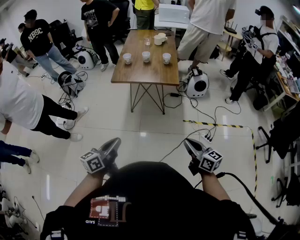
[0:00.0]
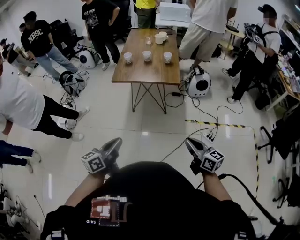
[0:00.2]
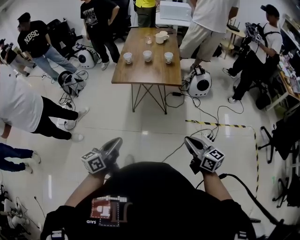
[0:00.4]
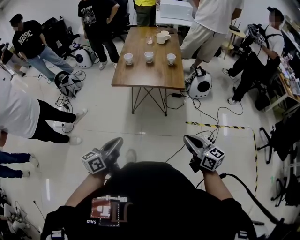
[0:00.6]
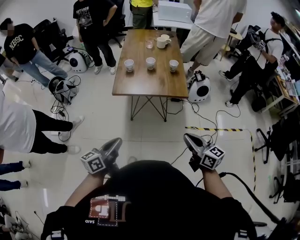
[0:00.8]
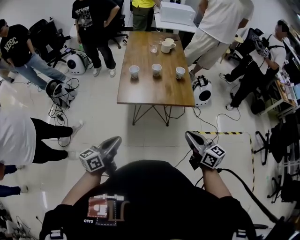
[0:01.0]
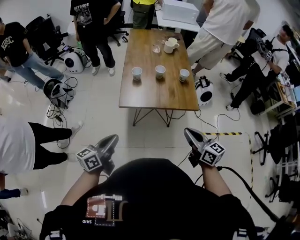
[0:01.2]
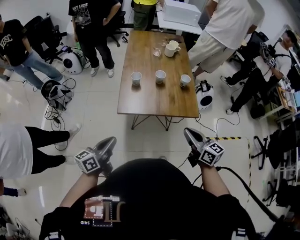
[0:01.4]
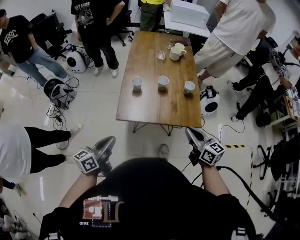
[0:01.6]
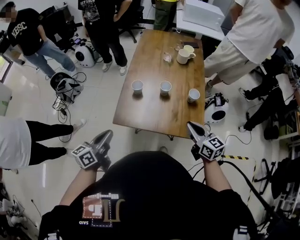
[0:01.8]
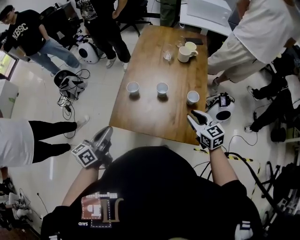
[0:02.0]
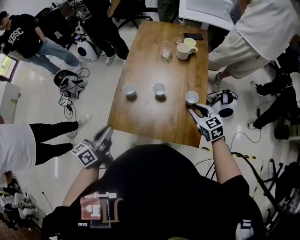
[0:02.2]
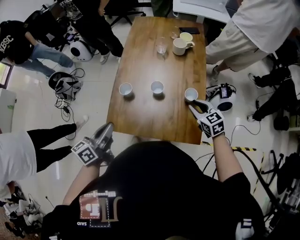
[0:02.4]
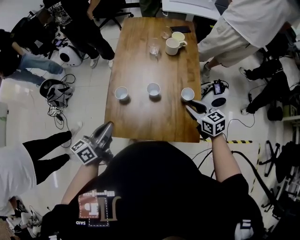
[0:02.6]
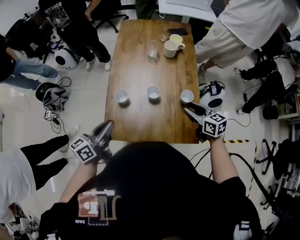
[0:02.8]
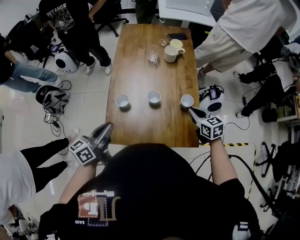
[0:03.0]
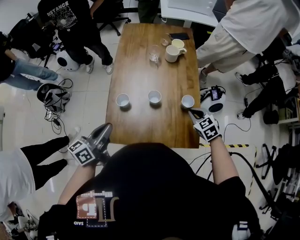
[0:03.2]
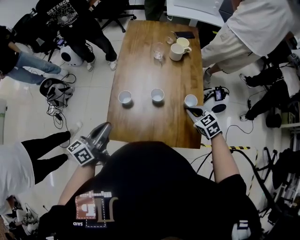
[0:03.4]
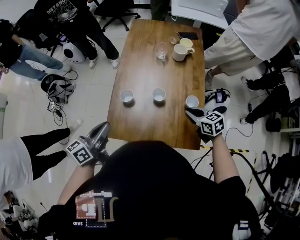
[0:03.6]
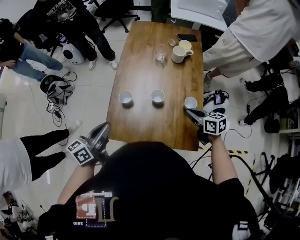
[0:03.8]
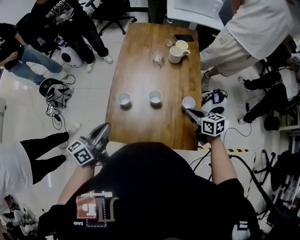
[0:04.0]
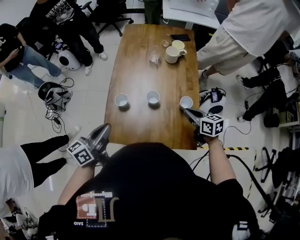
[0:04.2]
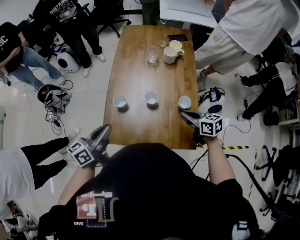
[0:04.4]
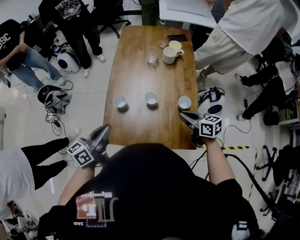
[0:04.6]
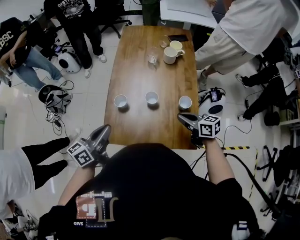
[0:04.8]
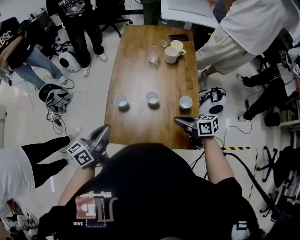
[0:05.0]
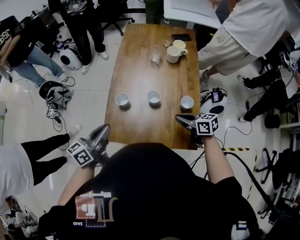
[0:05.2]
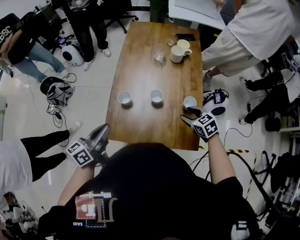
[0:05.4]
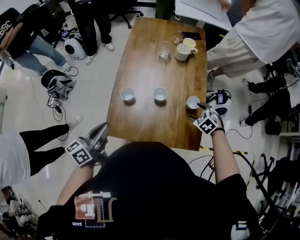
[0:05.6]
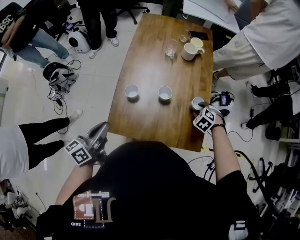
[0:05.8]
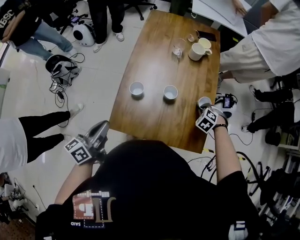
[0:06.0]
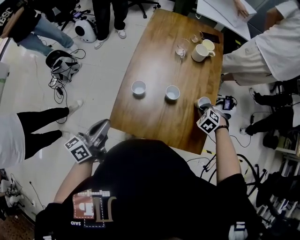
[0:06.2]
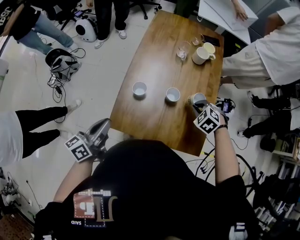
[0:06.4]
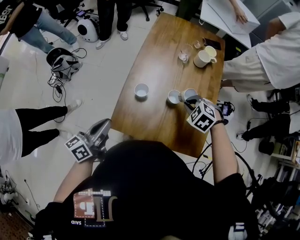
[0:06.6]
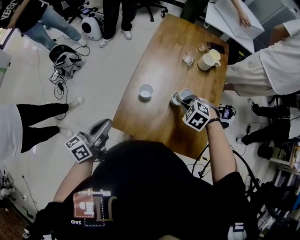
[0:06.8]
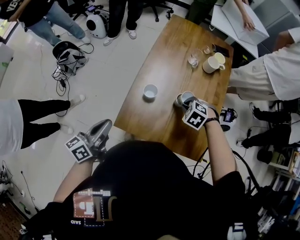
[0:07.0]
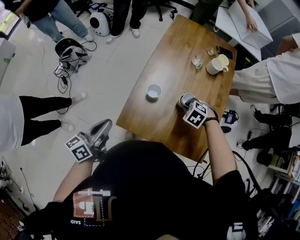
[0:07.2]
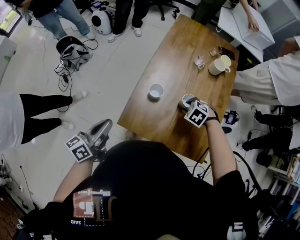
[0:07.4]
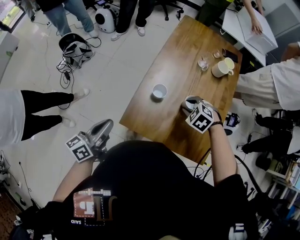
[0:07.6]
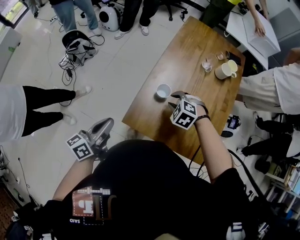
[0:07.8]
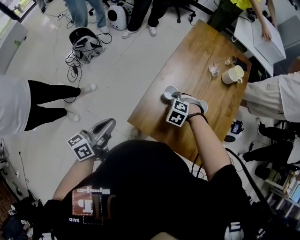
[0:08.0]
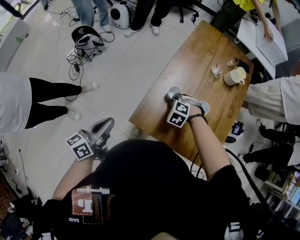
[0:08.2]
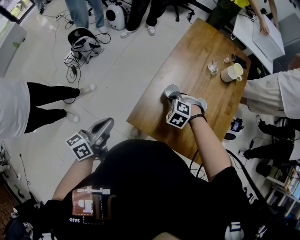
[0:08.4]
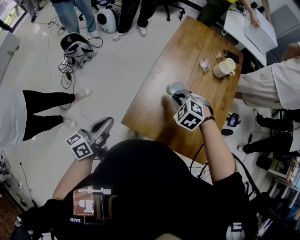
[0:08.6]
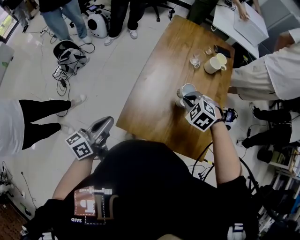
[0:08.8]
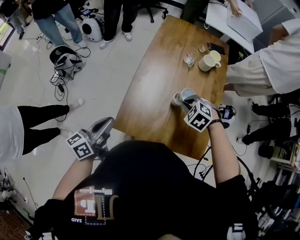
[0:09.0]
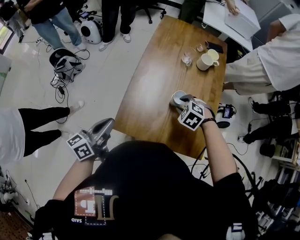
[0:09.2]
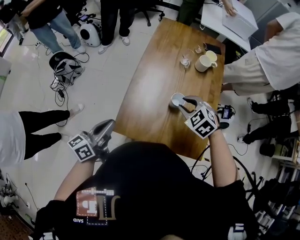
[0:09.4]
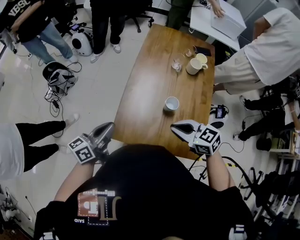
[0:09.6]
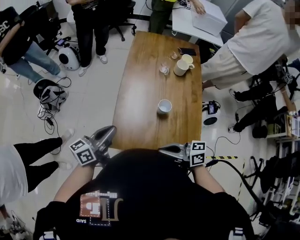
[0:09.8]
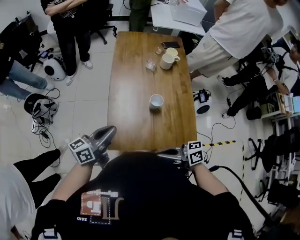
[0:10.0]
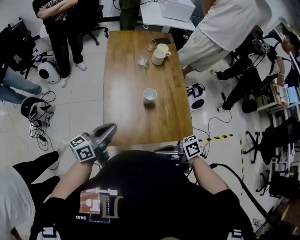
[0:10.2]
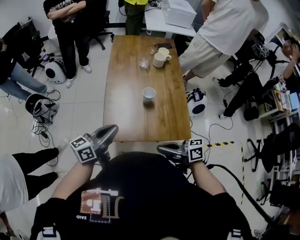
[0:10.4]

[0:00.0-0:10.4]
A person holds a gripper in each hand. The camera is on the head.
0:00.0 to 0:01.4: Both grippers move forward and to the left, roughly 40 cm.
0:01.4 to 0:03.0: The right gripper moves forward and to the right, some 35 cm, swivels about 30 degrees, and opens and closes again, while the left gripper moves forward, roughly 30 cm.
0:03.0 to 0:04.4: The right gripper rotates roughly 20 degrees.
0:04.4 to 0:06.0: The left gripper moves about 10 cm. Meanwhile the right gripper moves downward, roughly 10 cm, tilts its fingers some 40 degrees downward, and opens, then closes once more.
0:06.0 to 0:07.4: The left gripper ends up about 5 cm from where it was. Meanwhile the right gripper travels upward and back again, approximately 10 cm each way, and opens its fingers.
0:07.4 to 0:09.0: The right gripper goes up and down, about 15 cm each way, reversing 2 times, and closes its fingers.
0:09.0 to 0:10.4: The left gripper shifts by about 10 cm, and turns by roughly 30 degrees. The right gripper ends up some 30 cm from where it was, angles its fingers upward, by some 60 degrees, and opens, then closes again.

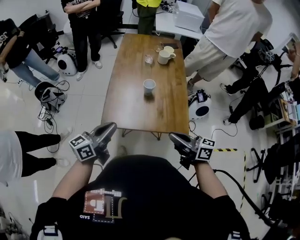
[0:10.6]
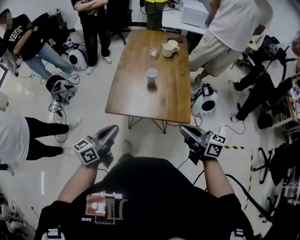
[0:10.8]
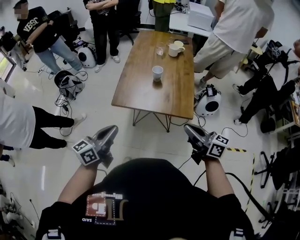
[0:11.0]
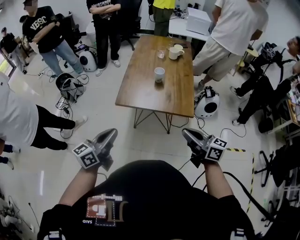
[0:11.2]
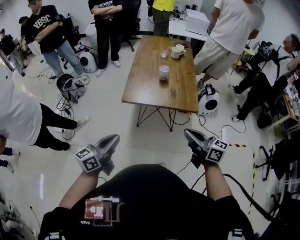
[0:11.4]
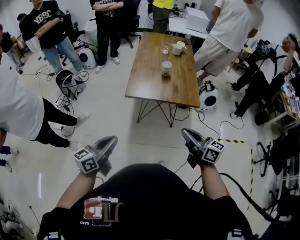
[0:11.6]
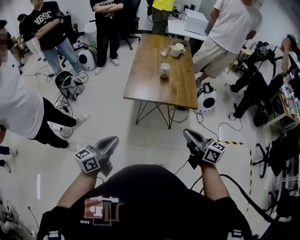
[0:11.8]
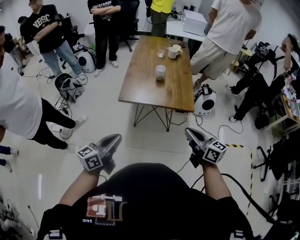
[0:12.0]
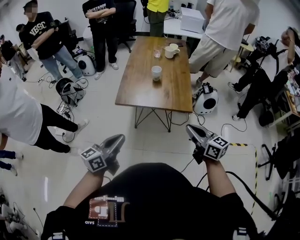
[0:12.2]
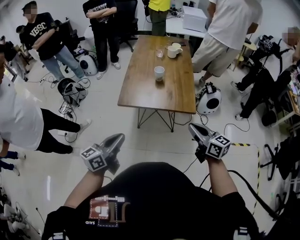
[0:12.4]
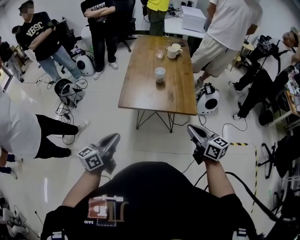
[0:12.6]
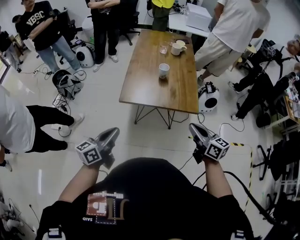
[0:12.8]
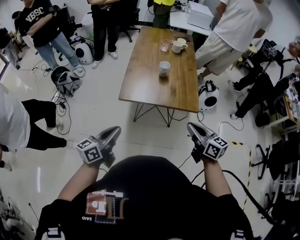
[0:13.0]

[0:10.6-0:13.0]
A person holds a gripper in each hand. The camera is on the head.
0:10.6 to 0:11.8: The right gripper is displaced backward by roughly 25 cm, while the left gripper is displaced backward and to the left by roughly 30 cm.
0:11.8 to 0:13.0: Both grippers move forward, approximately 10 cm.

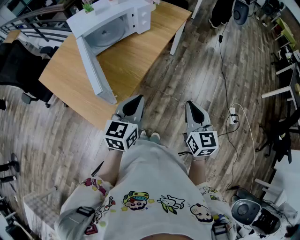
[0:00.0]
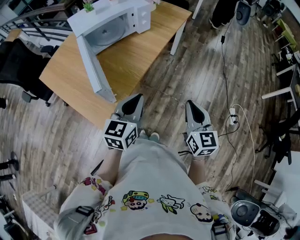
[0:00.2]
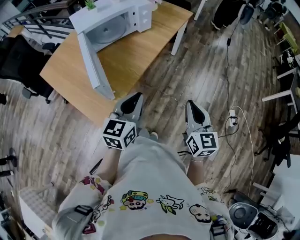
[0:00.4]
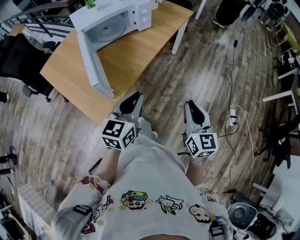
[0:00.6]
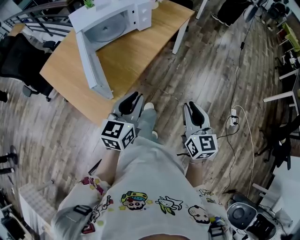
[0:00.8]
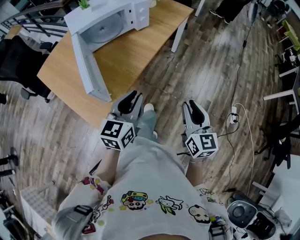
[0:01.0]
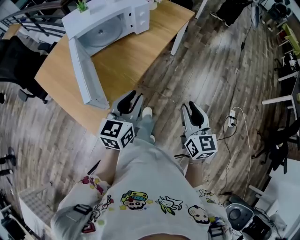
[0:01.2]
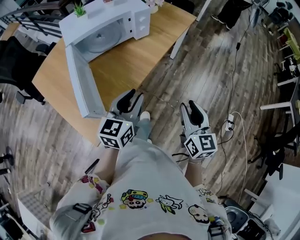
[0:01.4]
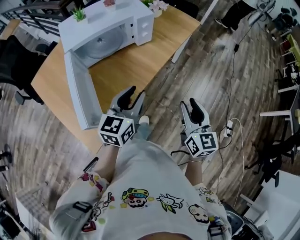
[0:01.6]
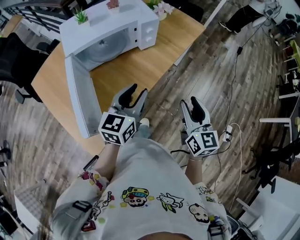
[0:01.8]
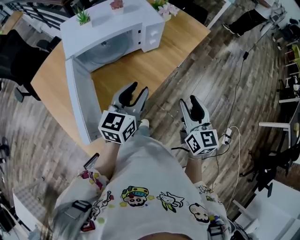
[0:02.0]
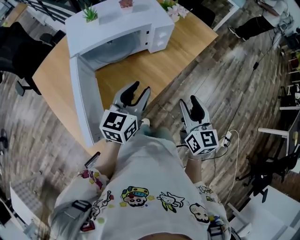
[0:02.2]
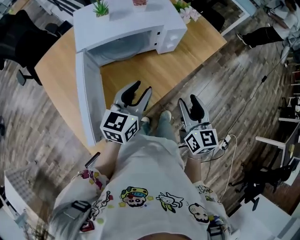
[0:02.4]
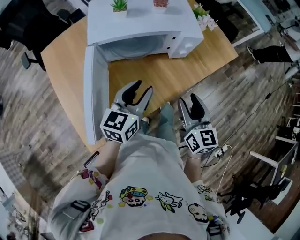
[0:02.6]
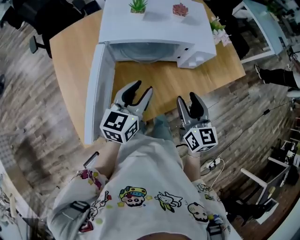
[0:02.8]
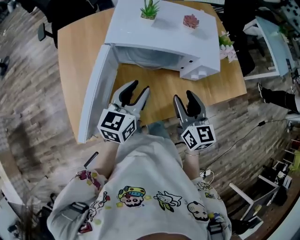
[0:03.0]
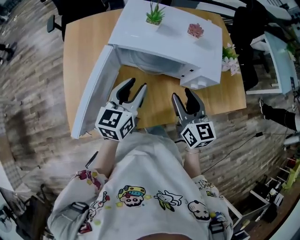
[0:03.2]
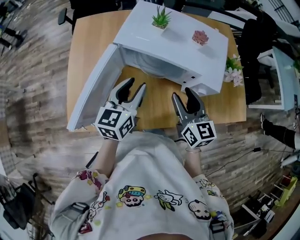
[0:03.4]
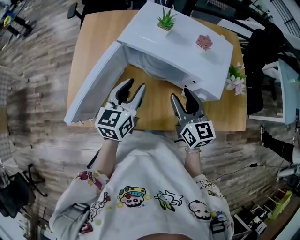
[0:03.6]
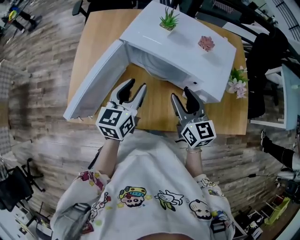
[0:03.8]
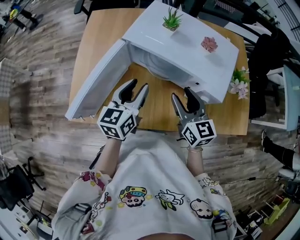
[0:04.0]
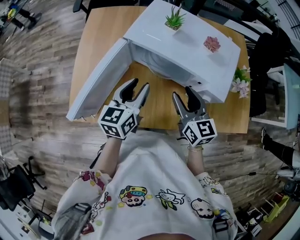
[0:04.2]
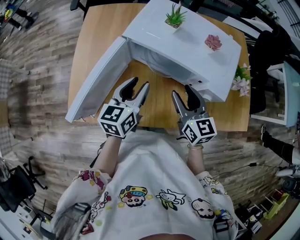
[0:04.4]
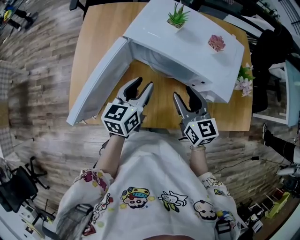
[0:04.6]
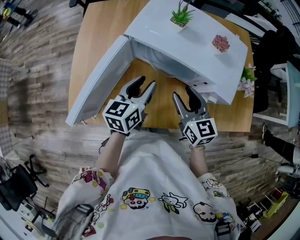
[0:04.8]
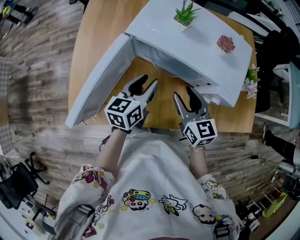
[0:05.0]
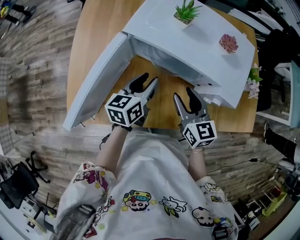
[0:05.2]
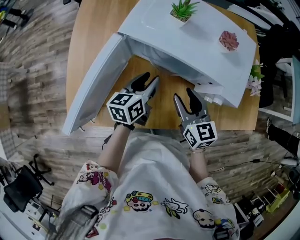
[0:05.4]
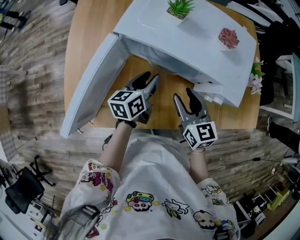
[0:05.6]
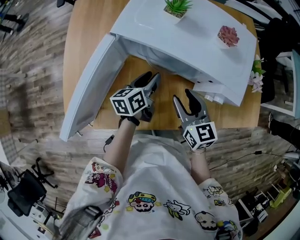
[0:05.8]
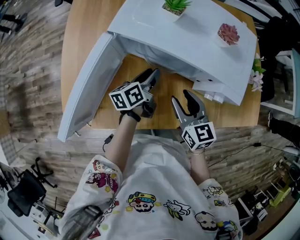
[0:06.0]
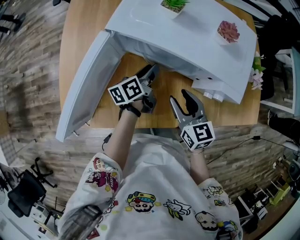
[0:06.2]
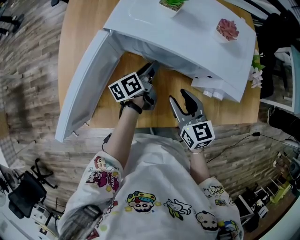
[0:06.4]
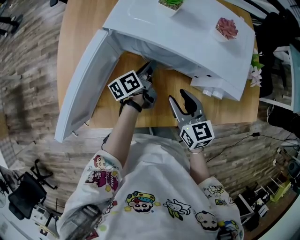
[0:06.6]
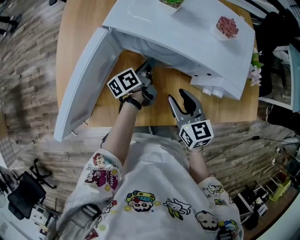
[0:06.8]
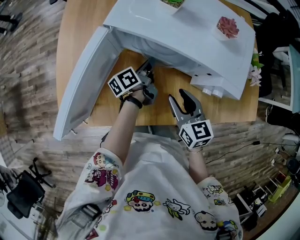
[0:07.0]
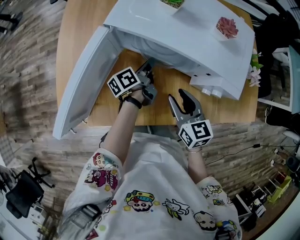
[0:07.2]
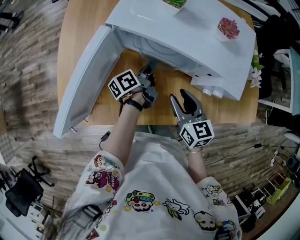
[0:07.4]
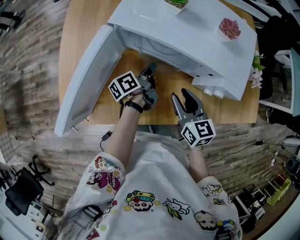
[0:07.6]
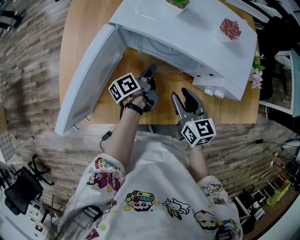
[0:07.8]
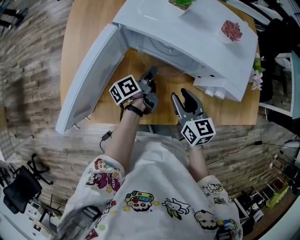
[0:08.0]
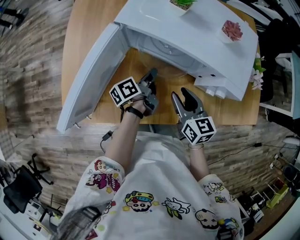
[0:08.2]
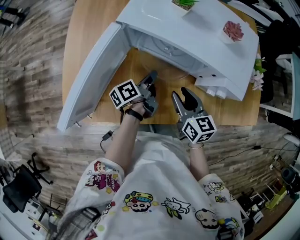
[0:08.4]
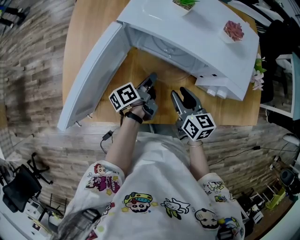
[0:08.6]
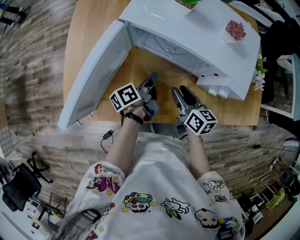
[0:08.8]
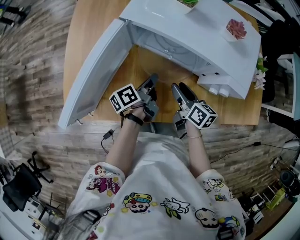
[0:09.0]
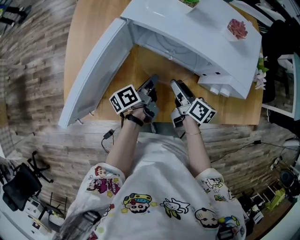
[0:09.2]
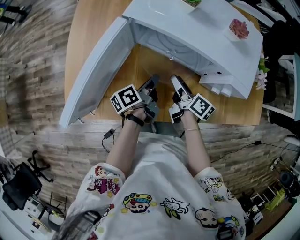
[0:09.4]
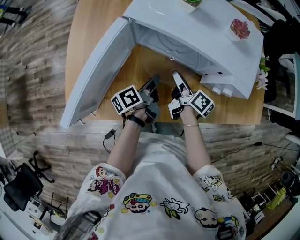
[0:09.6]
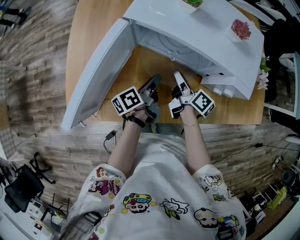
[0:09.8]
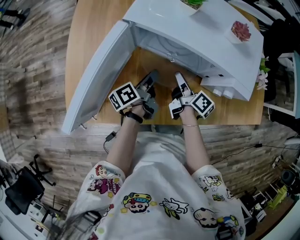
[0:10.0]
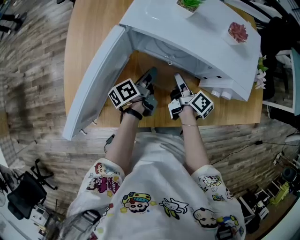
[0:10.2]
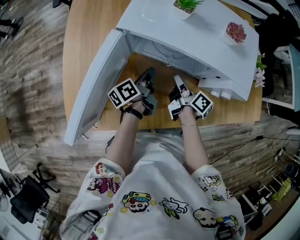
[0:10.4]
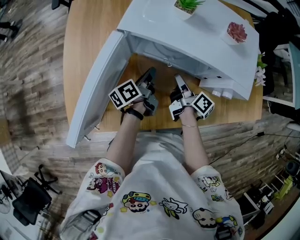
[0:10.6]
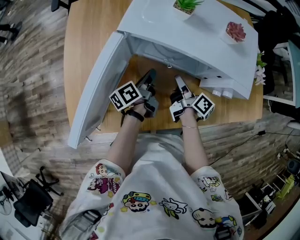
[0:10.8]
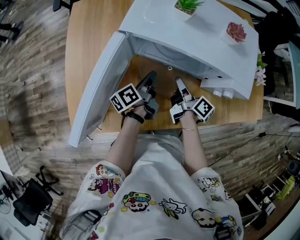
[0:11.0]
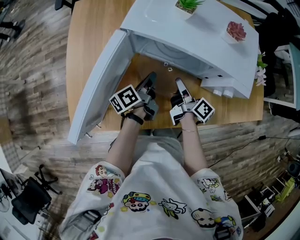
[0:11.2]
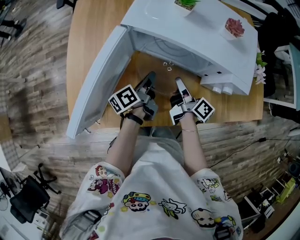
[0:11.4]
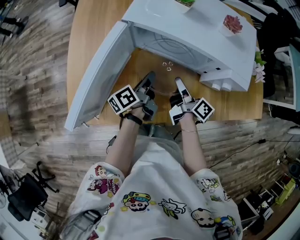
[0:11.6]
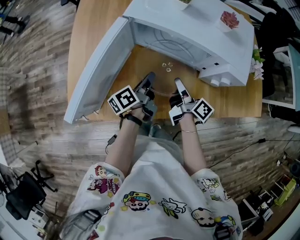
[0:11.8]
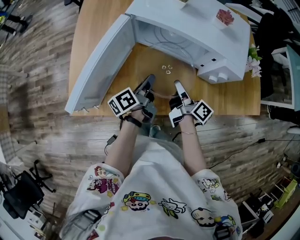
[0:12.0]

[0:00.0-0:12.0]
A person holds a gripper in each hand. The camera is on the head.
0:00.0 to 0:01.6: The two grippers go roughly 15 cm forward. The right gripper opens; the left gripper opens.
0:01.6 to 0:03.0: The right gripper ends up roughly 30 cm from where it was, and turns by some 40 degrees, while the left gripper shifts by approximately 20 cm, and turns by roughly 30 degrees.
0:03.0 to 0:04.4: The right gripper shifts by roughly 10 cm, and swivels roughly 20 degrees. Meanwhile the left gripper changes its angle by about 20 degrees.
0:04.4 to 0:06.0: The right gripper travels downward by approximately 10 cm. The left gripper goes roughly 15 cm downward and forward, and swivels roughly 30 degrees.
0:06.0 to 0:07.6: The left gripper turns by roughly 20 degrees, and closes up.
0:07.6 to 0:09.0: The right gripper goes about 5 cm downward, and rotates about 30 degrees. The left gripper heads backward, covering roughly 5 cm.
0:09.0 to 0:10.4: Both grippers travel together forward, approximately 5 cm. The right gripper turns by some 30 degrees, and closes its fingers.
0:10.4 to 0:12.0: The grippers both shift backward by some 10 cm.
